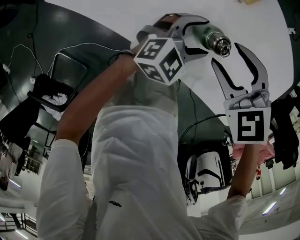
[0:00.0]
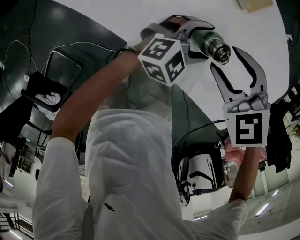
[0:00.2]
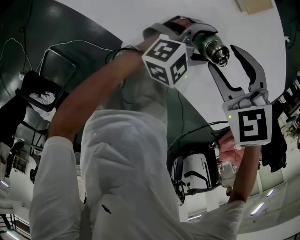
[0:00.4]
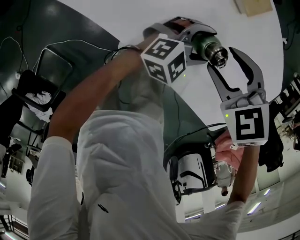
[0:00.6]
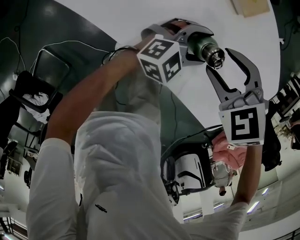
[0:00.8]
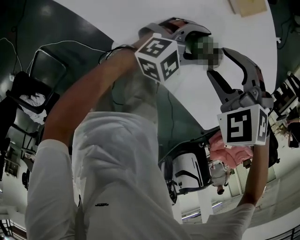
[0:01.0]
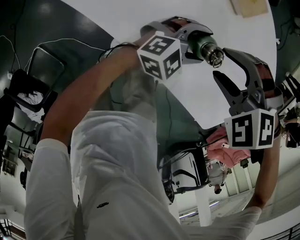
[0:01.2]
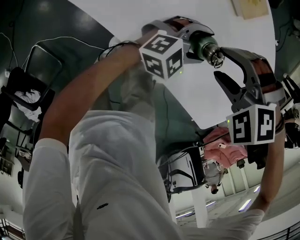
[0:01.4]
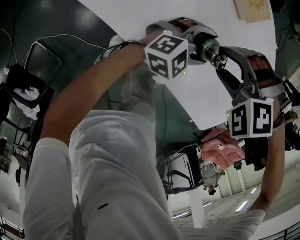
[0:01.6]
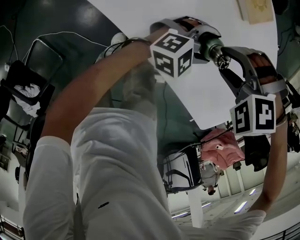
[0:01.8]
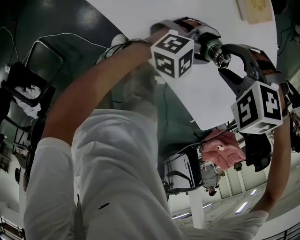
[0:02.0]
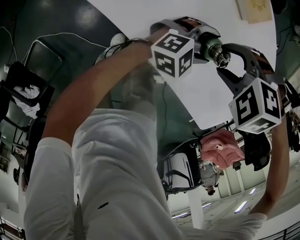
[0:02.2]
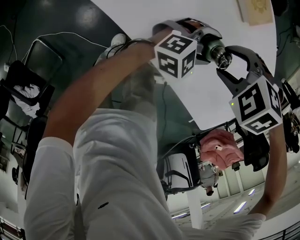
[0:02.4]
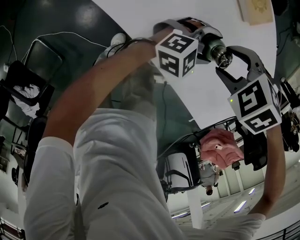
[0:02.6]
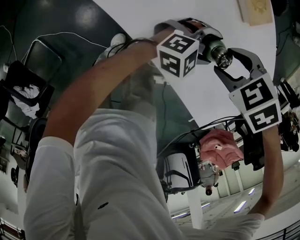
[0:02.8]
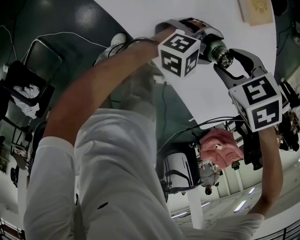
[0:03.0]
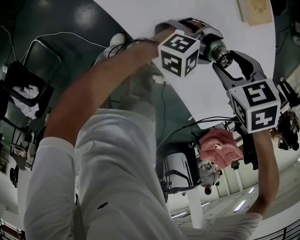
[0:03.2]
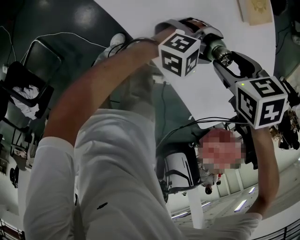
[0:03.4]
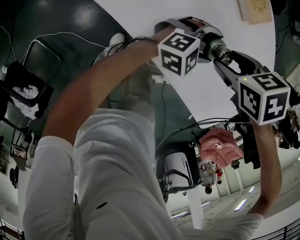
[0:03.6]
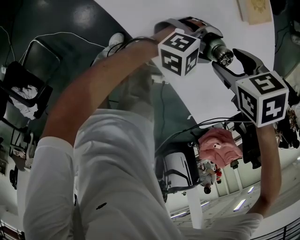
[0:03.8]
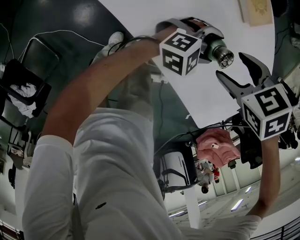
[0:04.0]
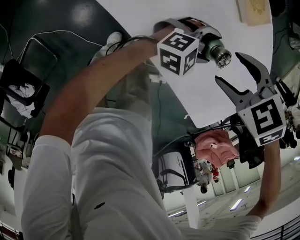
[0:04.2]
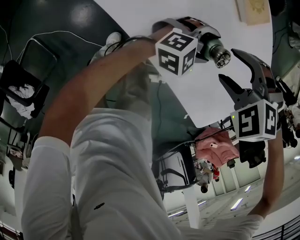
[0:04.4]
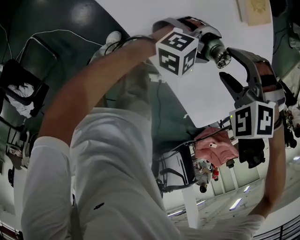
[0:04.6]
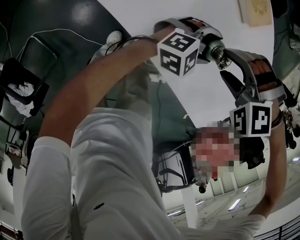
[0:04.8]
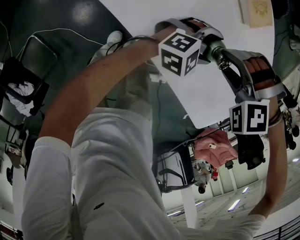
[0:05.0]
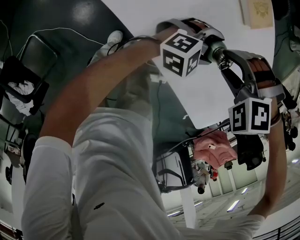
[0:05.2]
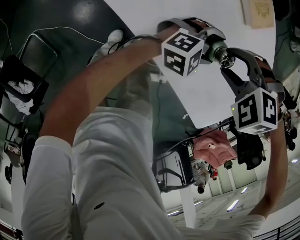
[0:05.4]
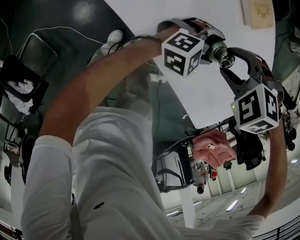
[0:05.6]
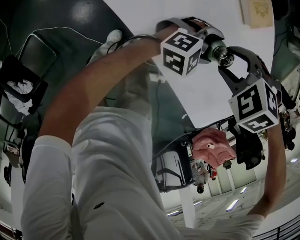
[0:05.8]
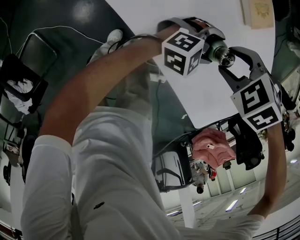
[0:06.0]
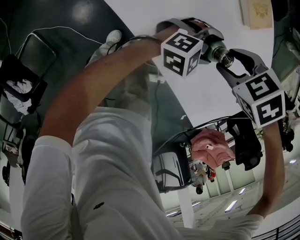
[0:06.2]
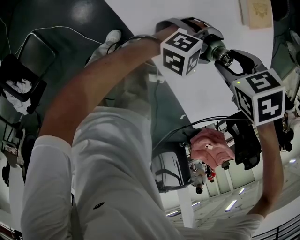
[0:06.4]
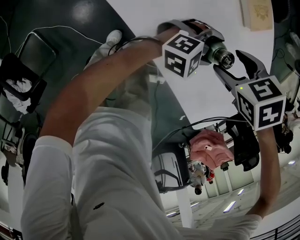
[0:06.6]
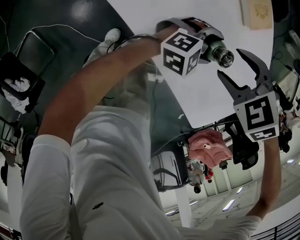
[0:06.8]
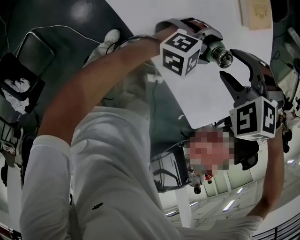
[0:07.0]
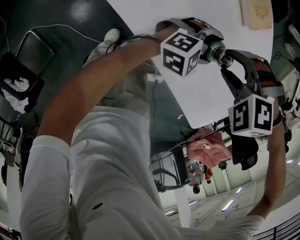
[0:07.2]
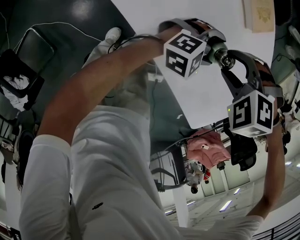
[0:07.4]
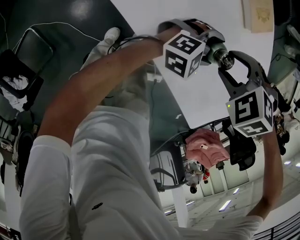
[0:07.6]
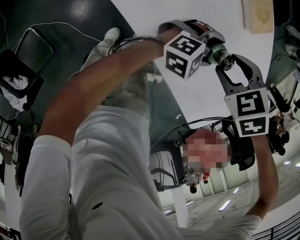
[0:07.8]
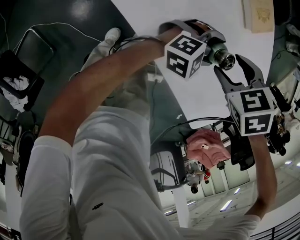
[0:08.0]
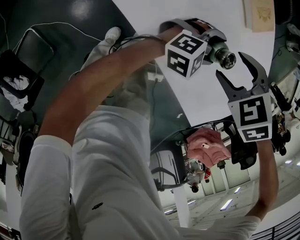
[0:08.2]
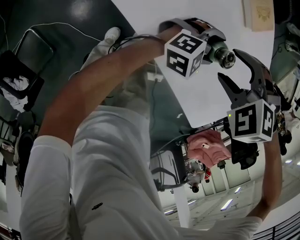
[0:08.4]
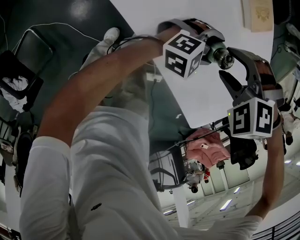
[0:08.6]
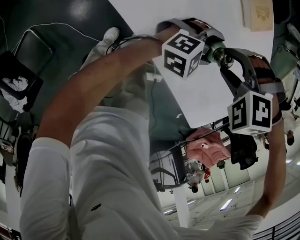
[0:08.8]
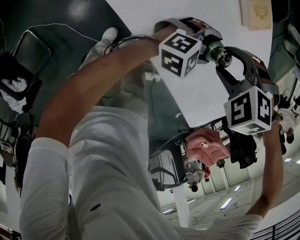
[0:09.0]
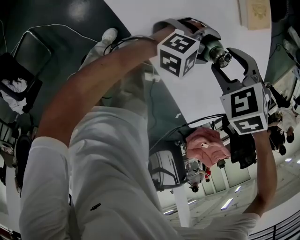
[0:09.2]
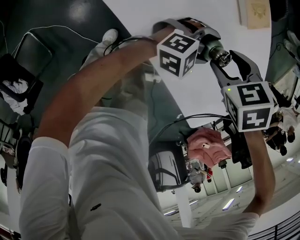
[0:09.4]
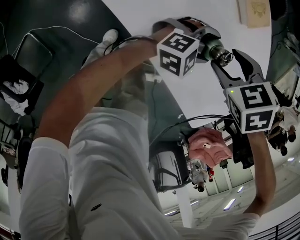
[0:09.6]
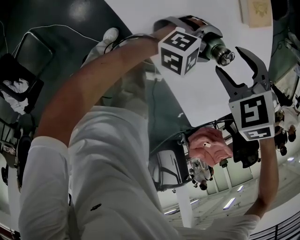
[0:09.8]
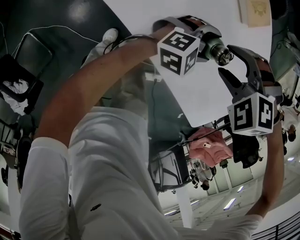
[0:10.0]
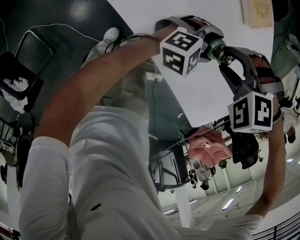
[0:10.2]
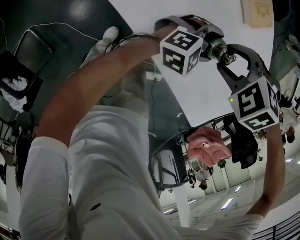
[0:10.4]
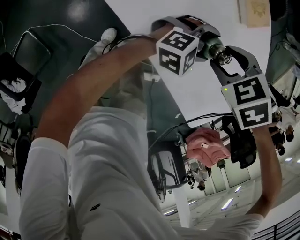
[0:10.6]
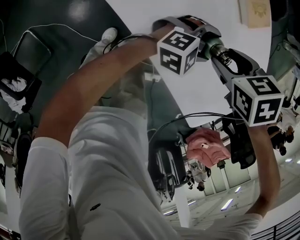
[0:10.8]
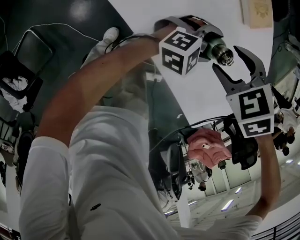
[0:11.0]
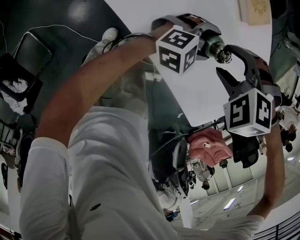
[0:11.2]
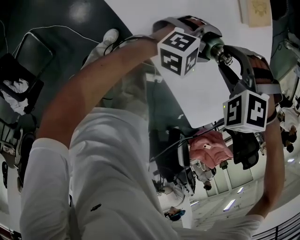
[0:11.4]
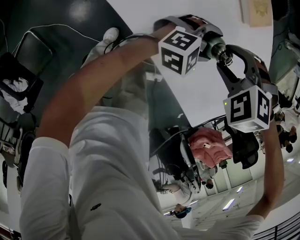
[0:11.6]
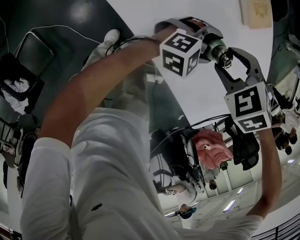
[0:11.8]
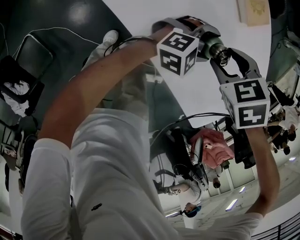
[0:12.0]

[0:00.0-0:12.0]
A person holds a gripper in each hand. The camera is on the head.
0:00.0 to 0:01.6: The right gripper twists some 60 degrees counterclockwise, seen from behind.
0:01.6 to 0:03.0: The right gripper twists roughly 50 degrees clockwise, seen from behind.
0:03.0 to 0:04.4: The right gripper rotates roughly 40 degrees.
0:10.4 to 0:12.0: The right gripper swivels about 40 degrees.

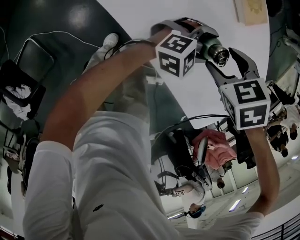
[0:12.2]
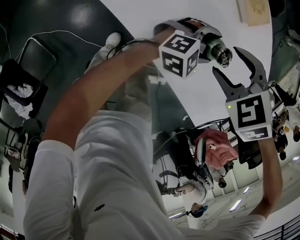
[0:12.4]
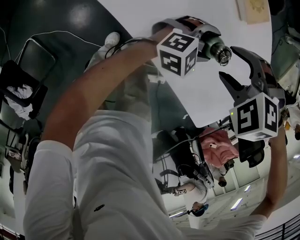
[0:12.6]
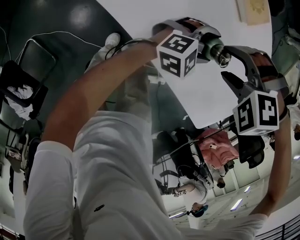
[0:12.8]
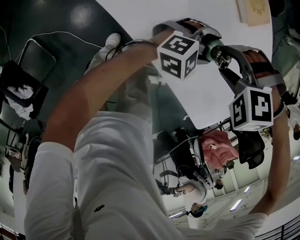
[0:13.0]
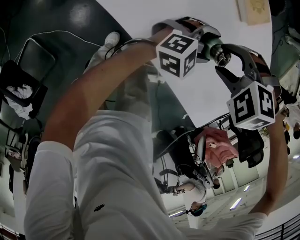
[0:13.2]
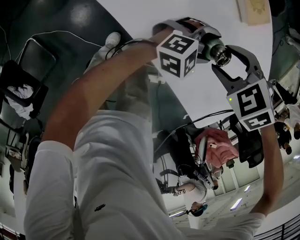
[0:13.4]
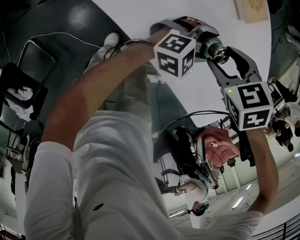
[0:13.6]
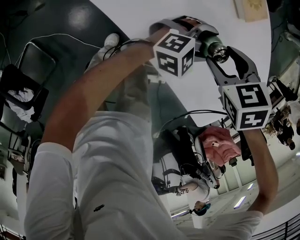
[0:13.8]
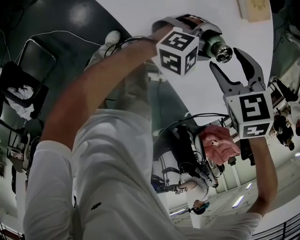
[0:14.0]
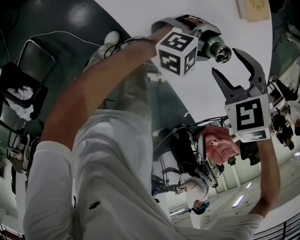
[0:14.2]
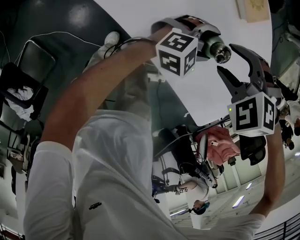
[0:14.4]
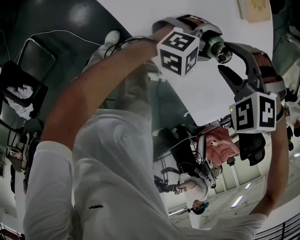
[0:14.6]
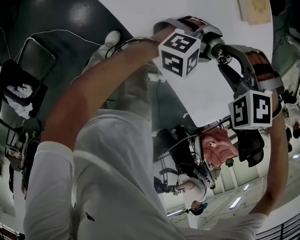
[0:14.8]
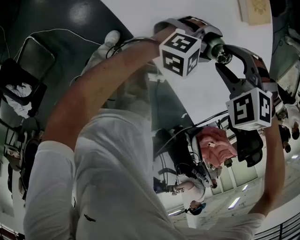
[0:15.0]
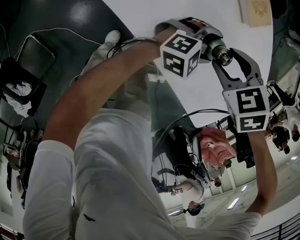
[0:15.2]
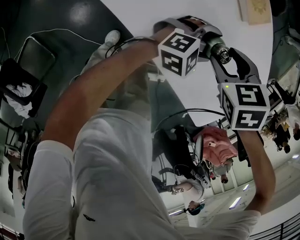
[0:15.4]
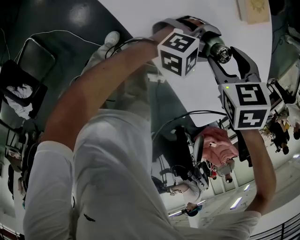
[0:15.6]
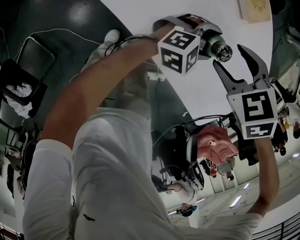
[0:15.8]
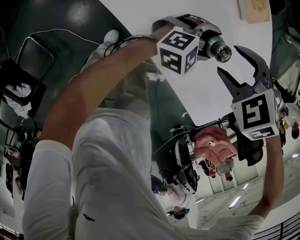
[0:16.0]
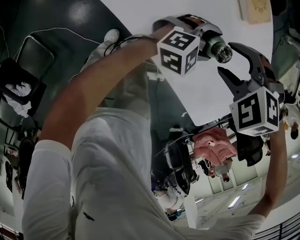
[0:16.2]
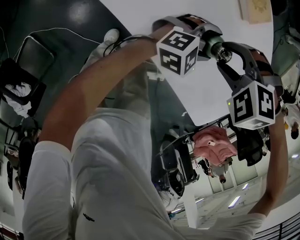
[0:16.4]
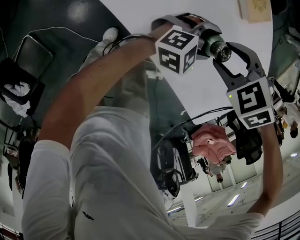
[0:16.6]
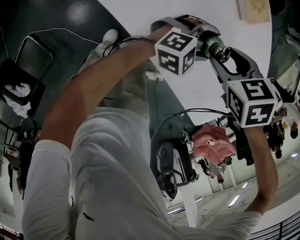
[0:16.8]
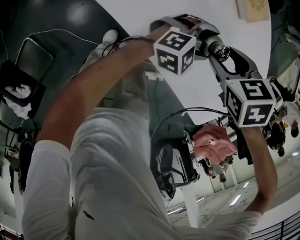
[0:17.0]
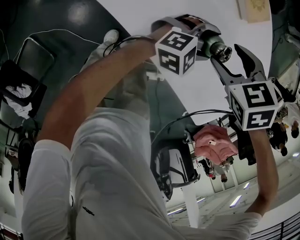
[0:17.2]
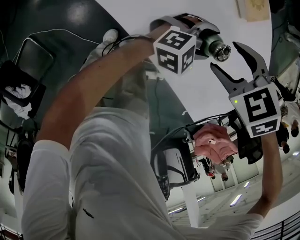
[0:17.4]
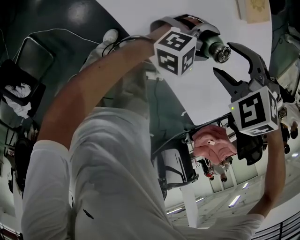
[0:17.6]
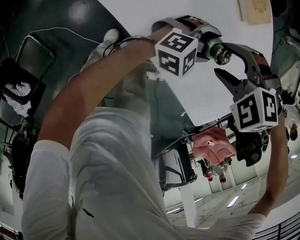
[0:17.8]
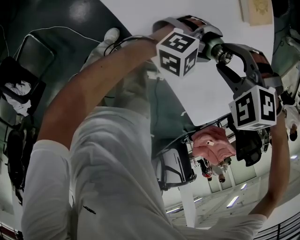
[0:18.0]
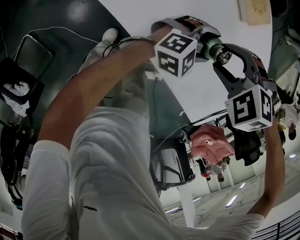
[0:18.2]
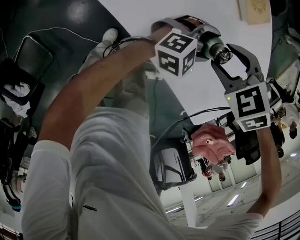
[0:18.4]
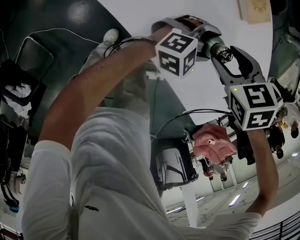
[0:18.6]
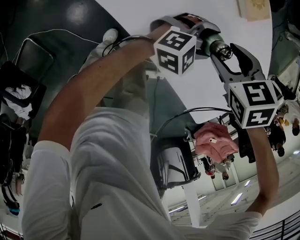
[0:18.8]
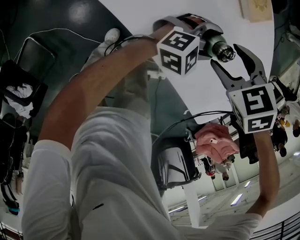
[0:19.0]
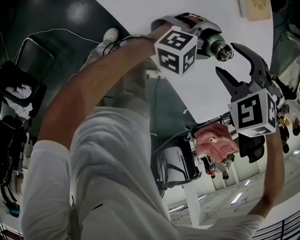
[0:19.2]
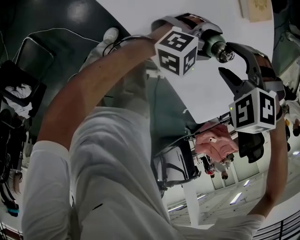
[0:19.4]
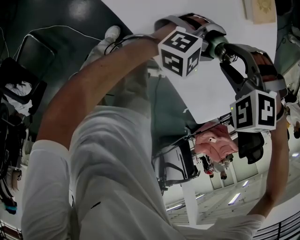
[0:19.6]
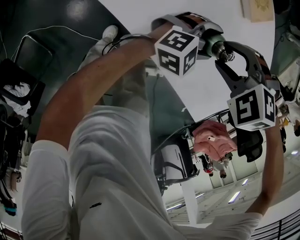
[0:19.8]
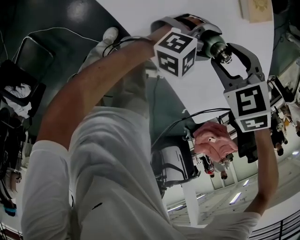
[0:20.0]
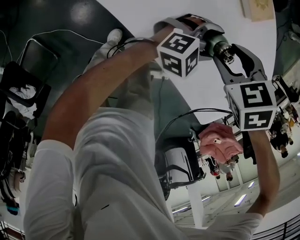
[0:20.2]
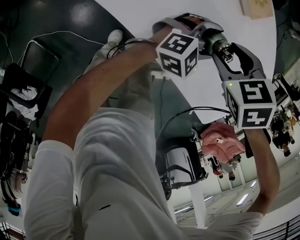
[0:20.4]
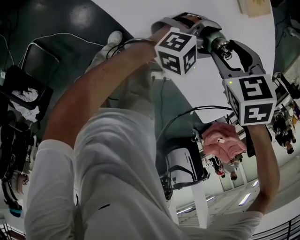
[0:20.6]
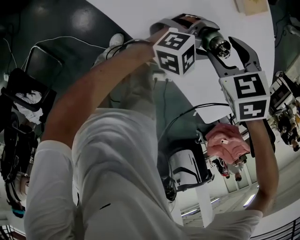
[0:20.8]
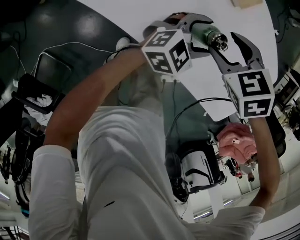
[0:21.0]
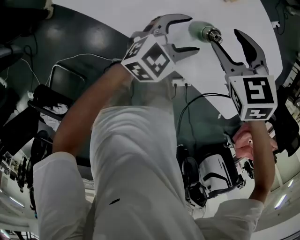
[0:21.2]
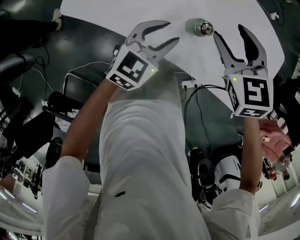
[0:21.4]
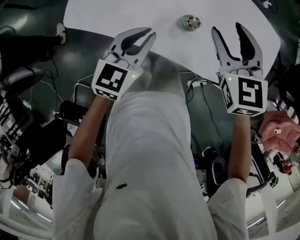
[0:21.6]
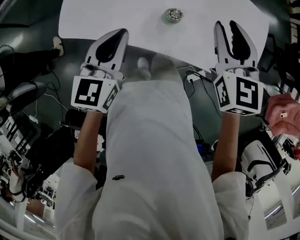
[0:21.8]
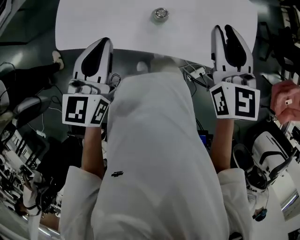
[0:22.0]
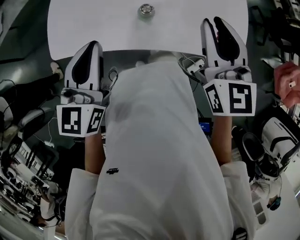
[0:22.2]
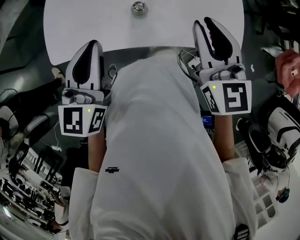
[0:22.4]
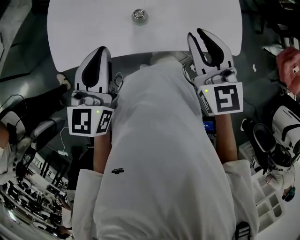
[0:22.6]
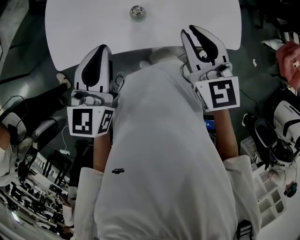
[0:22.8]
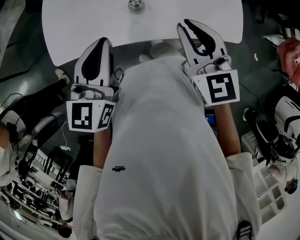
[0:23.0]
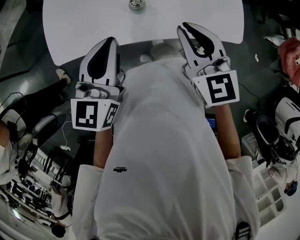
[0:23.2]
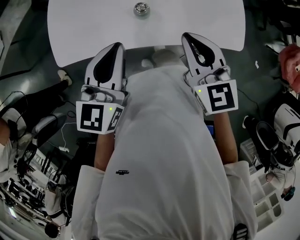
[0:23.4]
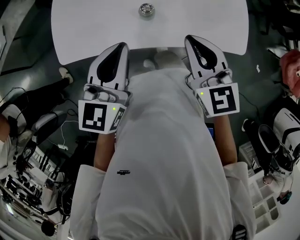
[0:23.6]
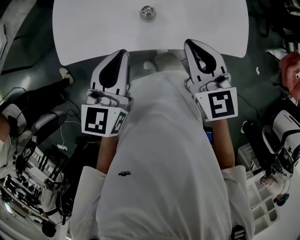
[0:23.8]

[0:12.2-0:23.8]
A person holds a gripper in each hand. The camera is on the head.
0:13.6 to 0:15.0: The right gripper rotates around the line of its fingers by roughly 50 degrees, counterclockwise from behind.
0:15.0 to 0:16.6: The right gripper turns by some 20 degrees.
0:16.6 to 0:18.0: The right gripper rotates approximately 30 degrees.
0:19.4 to 0:21.0: The right gripper rolls clockwise, seen from behind, by about 60 degrees.
0:21.0 to 0:22.4: The right gripper moves upward, backward and to the right, roughly 35 cm, tips its fingers upward by roughly 60 degrees, and closes up. The left gripper is displaced upward and backward by about 35 cm, and closes up.
0:22.4 to 0:23.8: The right gripper moves approximately 5 cm.

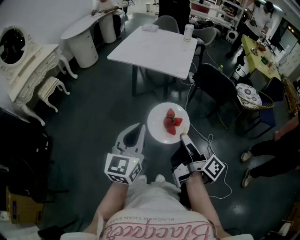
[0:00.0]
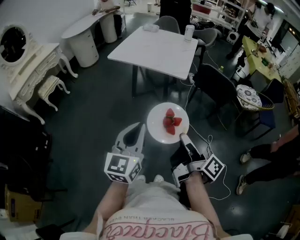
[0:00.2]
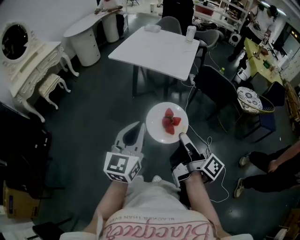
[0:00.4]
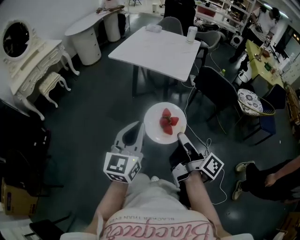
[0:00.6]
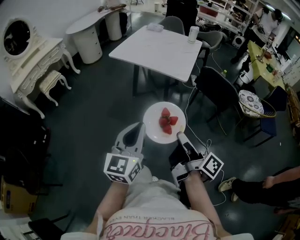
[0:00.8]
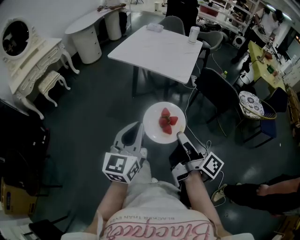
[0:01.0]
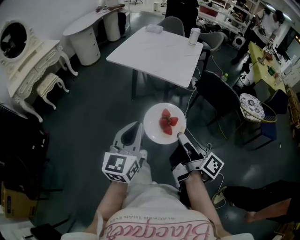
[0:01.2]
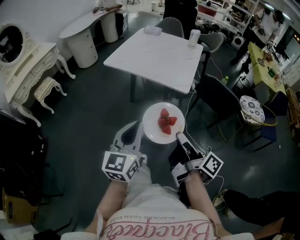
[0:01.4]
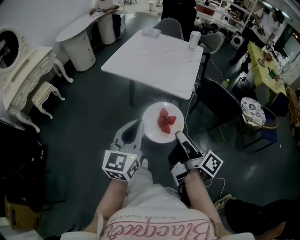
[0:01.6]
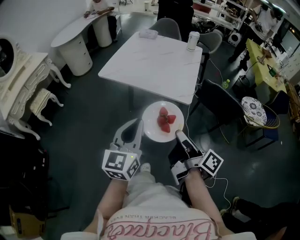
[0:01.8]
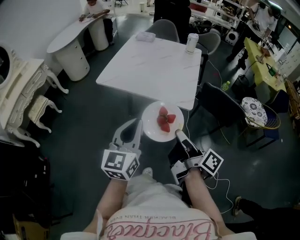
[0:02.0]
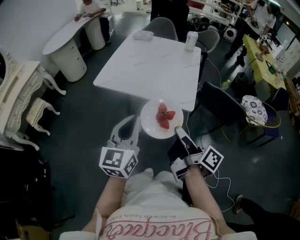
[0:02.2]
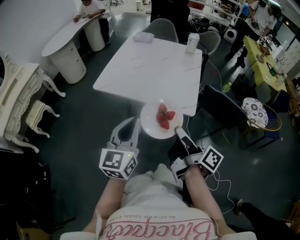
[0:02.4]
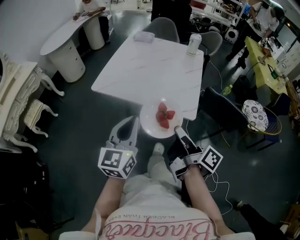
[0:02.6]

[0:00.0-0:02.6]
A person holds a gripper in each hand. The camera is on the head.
0:00.0 to 0:01.2: The grippers both shift forward by approximately 10 cm.
0:01.2 to 0:02.6: The grippers both shift forward by approximately 35 cm.
